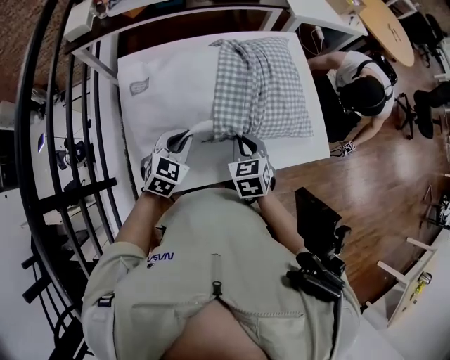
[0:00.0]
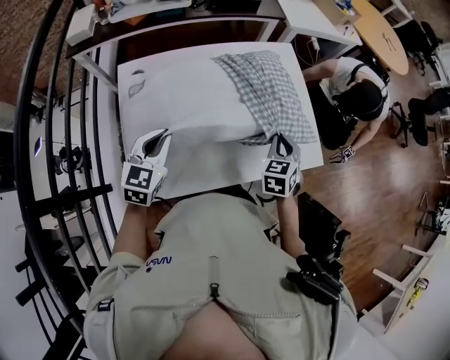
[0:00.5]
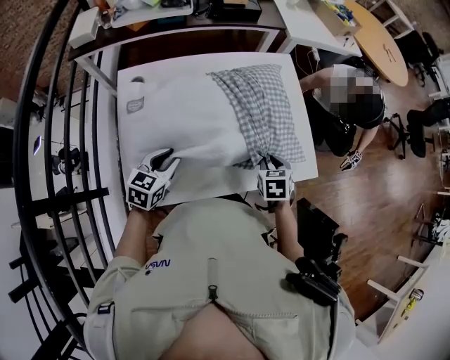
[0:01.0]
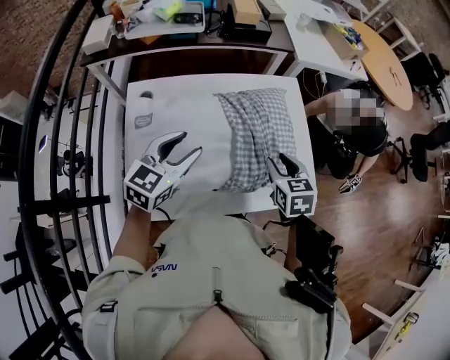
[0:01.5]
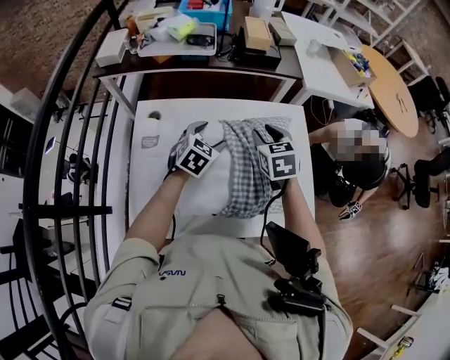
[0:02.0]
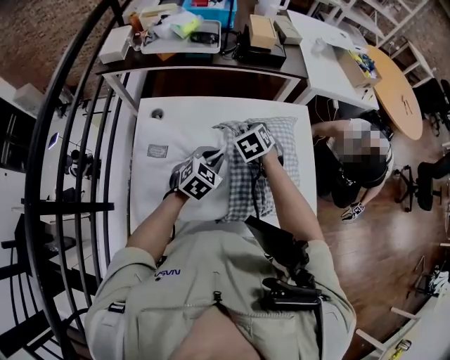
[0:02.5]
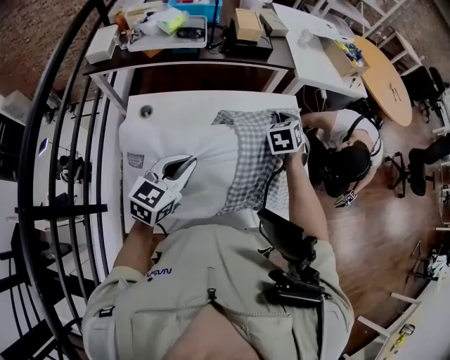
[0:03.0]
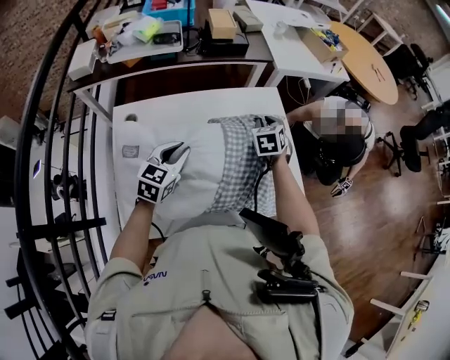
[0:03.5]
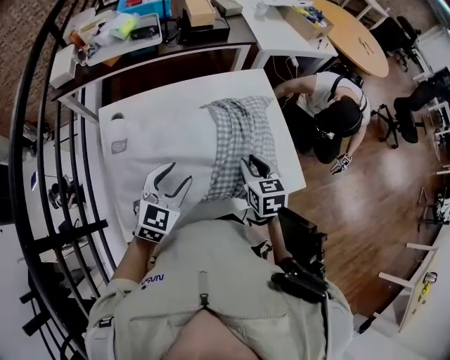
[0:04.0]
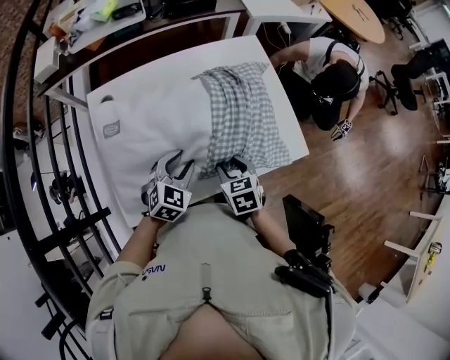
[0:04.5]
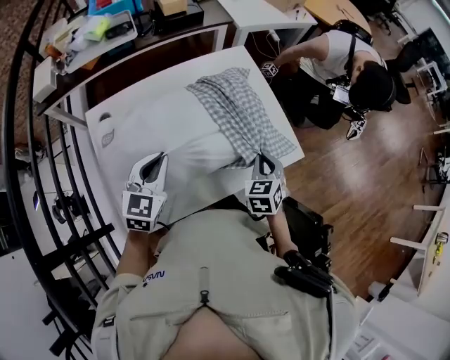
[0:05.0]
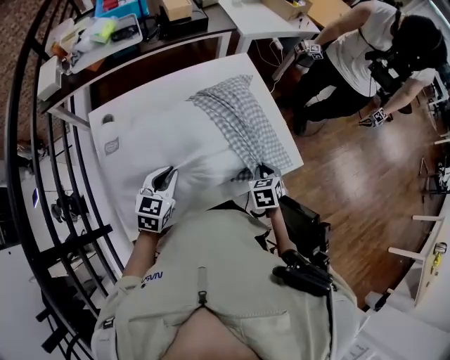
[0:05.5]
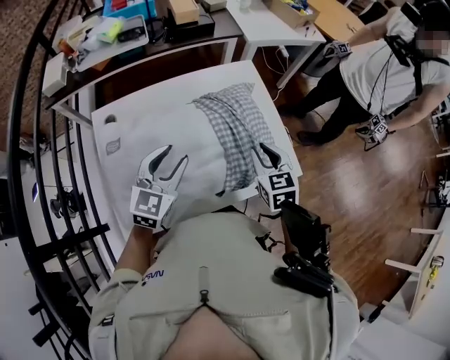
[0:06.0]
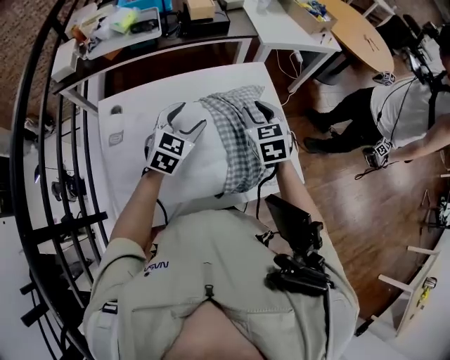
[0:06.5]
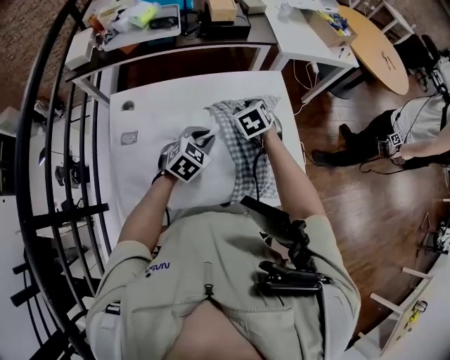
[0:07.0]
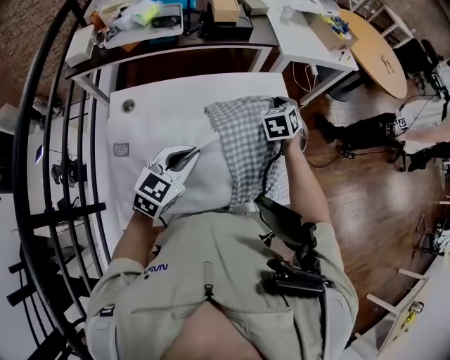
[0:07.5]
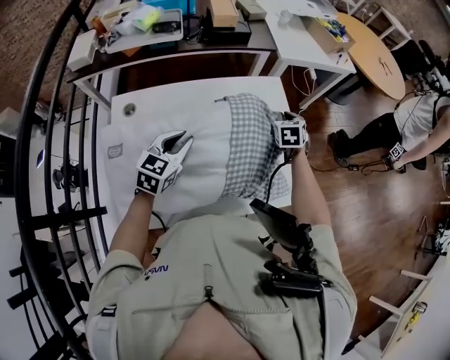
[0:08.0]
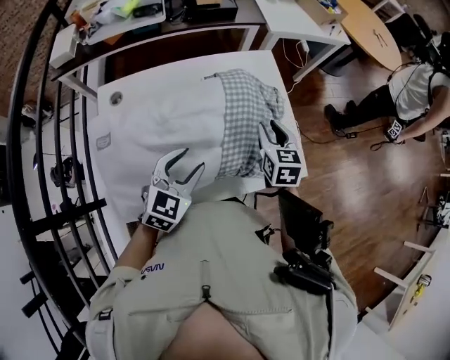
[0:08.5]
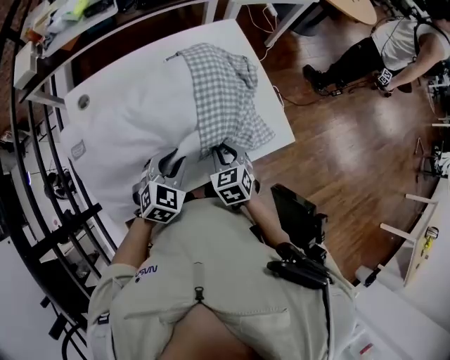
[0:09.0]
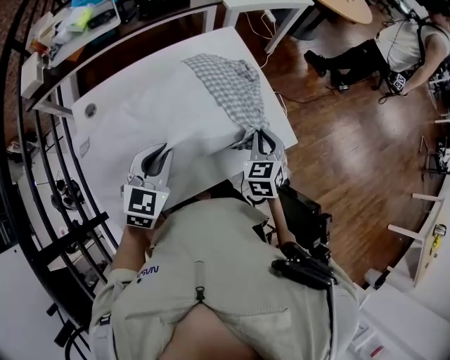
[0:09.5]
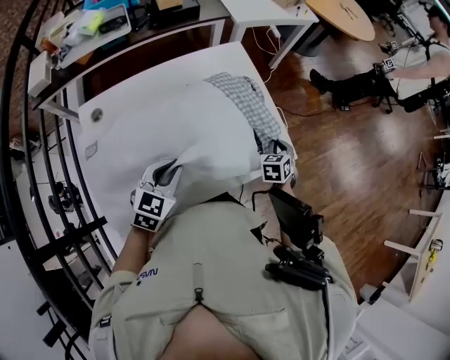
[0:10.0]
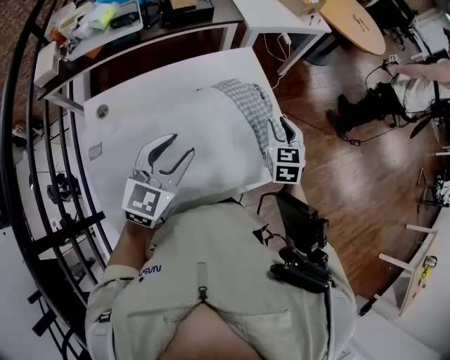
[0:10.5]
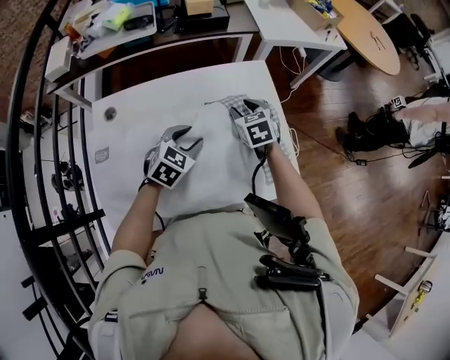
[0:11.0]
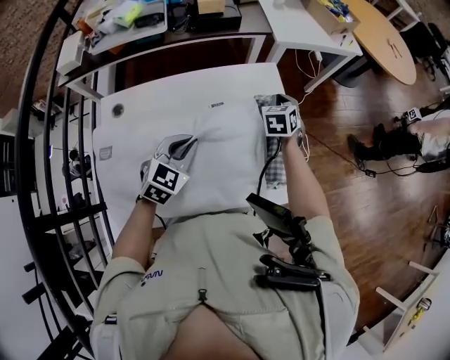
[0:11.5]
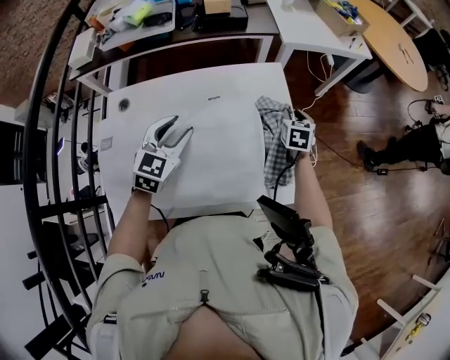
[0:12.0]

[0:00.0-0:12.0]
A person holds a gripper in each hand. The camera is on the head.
0:00.0 to 0:02.0: The left gripper shifts roughly 20 cm forward, and opens its fingers. Meanwhile the right gripper shifts some 25 cm forward and upward, and opens its fingers.
0:02.0 to 0:04.0: The left gripper goes forward and backward, roughly 20 cm each way, reversing 2 times, and closes, then opens again; the right gripper goes approximately 20 cm backward and to the right, and closes, then reopens.
0:04.0 to 0:06.0: The right gripper swings up and down, about 15 cm each way, with 3 reversals, and closes and opens again. The left gripper swings up and down, about 15 cm each way, with 3 reversals, and closes, then opens again.
0:06.0 to 0:08.0: The right gripper heads forward, covering about 20 cm; the left gripper goes forward and backward, approximately 10 cm each way, reversing 2 times.
0:08.0 to 0:10.0: The left gripper is displaced backward and to the right by approximately 15 cm, and opens, then closes again. The right gripper travels backward, to the right and downward by roughly 25 cm, and opens, then closes again.
0:10.0 to 0:12.0: The right gripper goes upward and returns, about 15 cm each way, changes its angle by roughly 20 degrees, and opens up. Meanwhile the left gripper moves up and down over roughly 15 cm, changing direction 2 times, and opens its fingers.

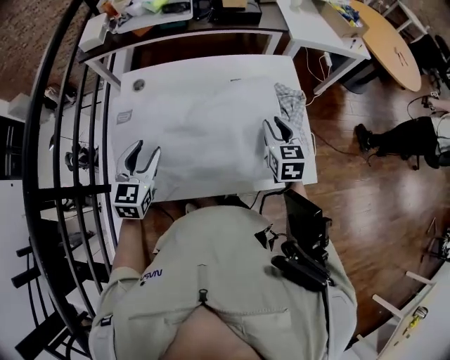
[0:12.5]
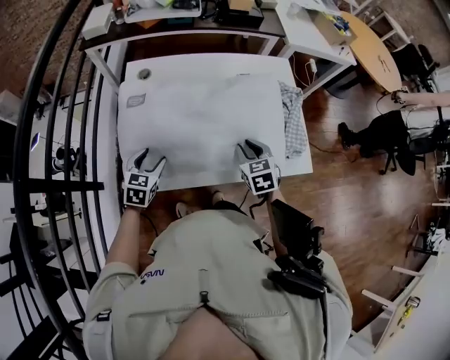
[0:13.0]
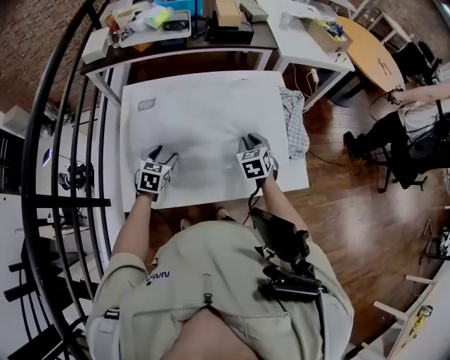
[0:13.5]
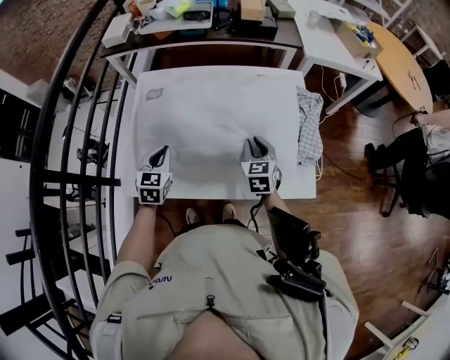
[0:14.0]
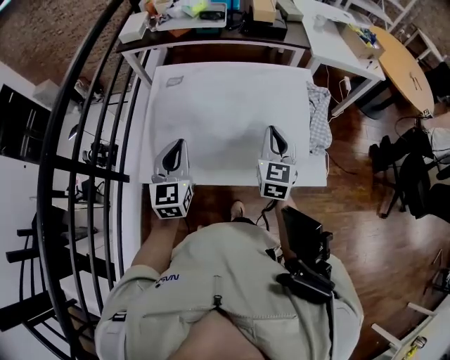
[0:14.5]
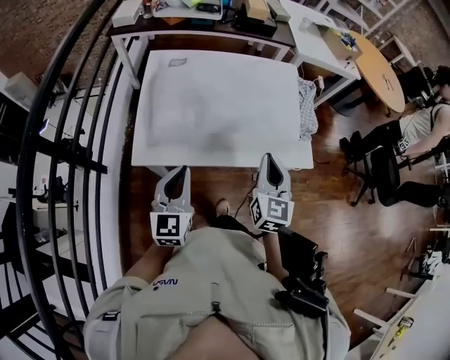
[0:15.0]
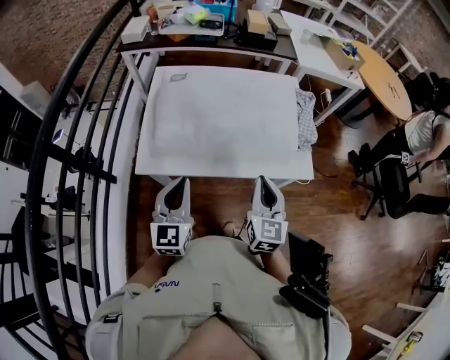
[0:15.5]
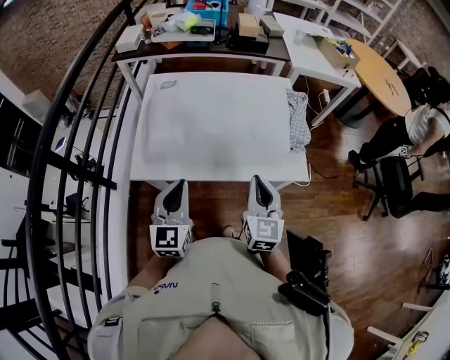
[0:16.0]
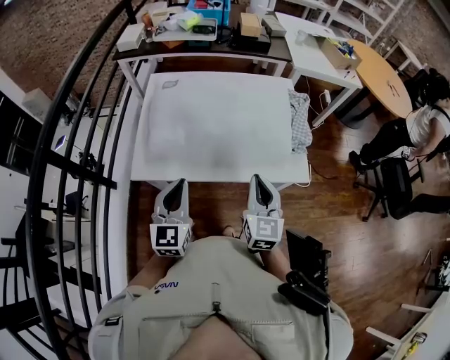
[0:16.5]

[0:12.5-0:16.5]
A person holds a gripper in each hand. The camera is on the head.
0:12.5 to 0:14.5: The left gripper is displaced backward by approximately 5 cm, moves approximately 15 cm downward and comes back, changes its angle by approximately 20 degrees, and closes up. The right gripper travels backward and to the left by approximately 10 cm, and closes.
0:14.5 to 0:16.5: Both grippers travel together backward, approximately 15 cm.

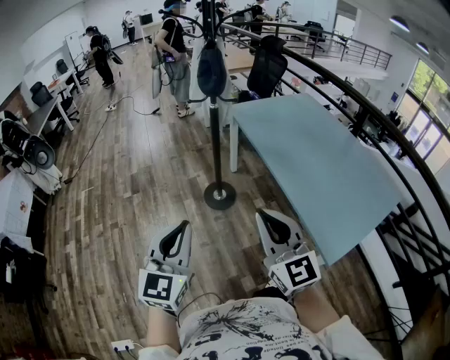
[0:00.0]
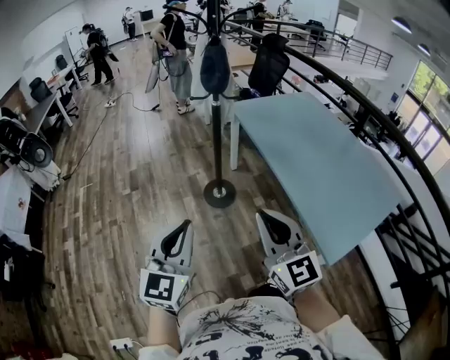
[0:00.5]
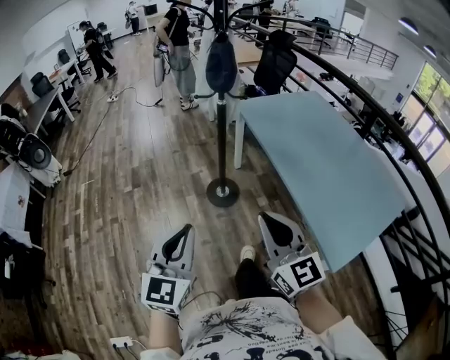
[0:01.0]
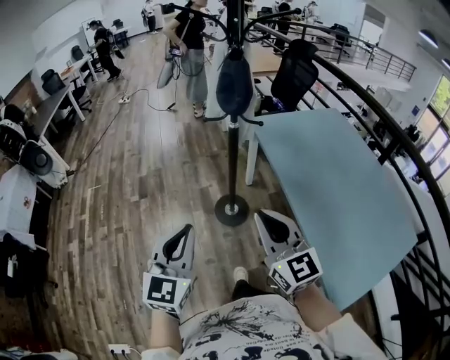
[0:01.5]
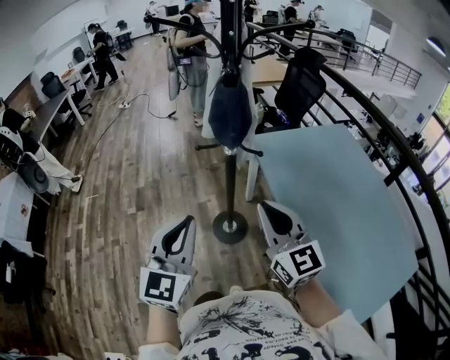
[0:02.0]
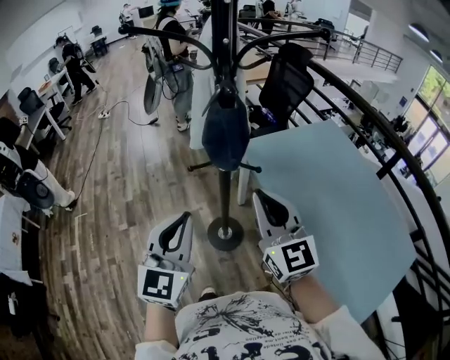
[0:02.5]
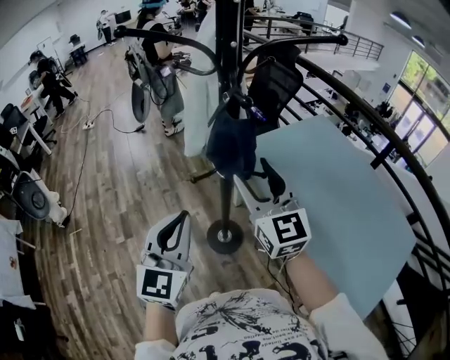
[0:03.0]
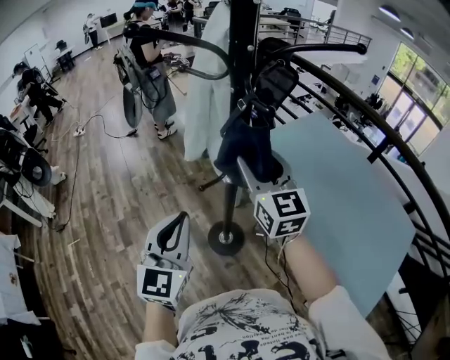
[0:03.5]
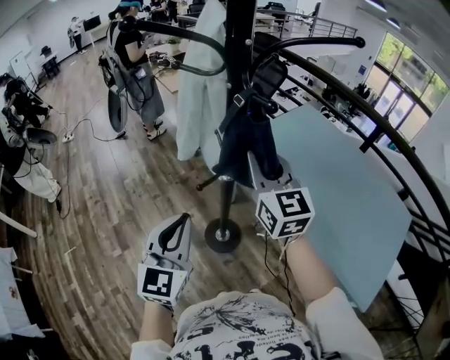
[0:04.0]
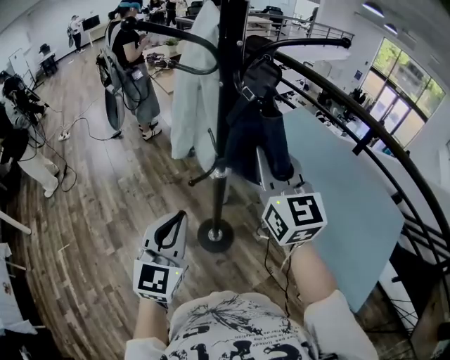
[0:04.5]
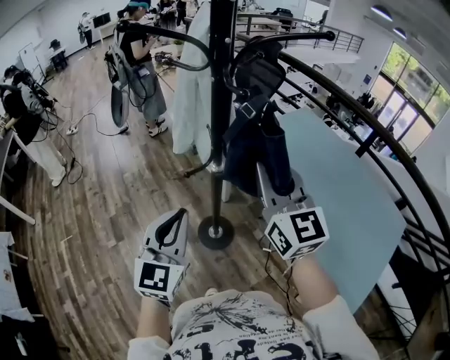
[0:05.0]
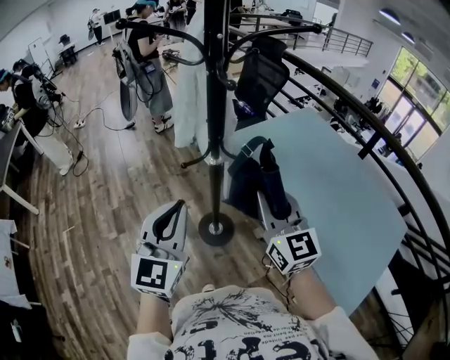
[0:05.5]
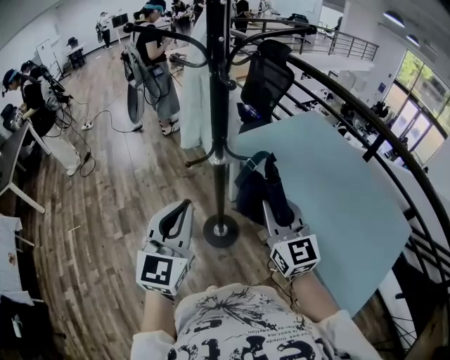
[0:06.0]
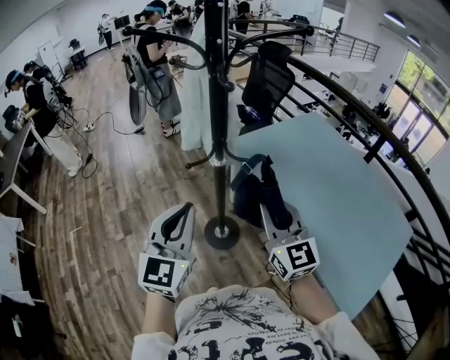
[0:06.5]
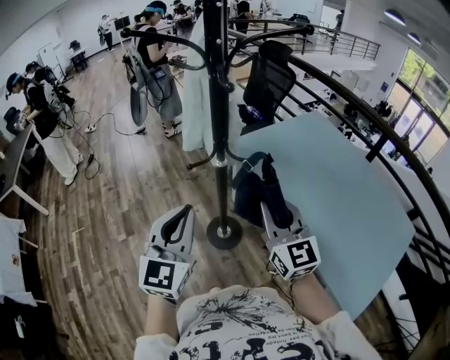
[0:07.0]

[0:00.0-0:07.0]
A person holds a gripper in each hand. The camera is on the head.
0:00.0 to 0:02.0: Both grippers travel together forward, roughly 35 cm.
0:02.0 to 0:03.5: The left gripper moves forward and to the left, about 20 cm; the right gripper shifts approximately 25 cm forward, swivels roughly 20 degrees, and opens its fingers.
0:03.5 to 0:05.0: The right gripper travels backward and to the right by roughly 10 cm, and closes its fingers; the left gripper changes place by some 5 cm.
0:05.0 to 0:07.0: The left gripper shifts by some 5 cm. The right gripper heads downward and backward, covering about 10 cm.

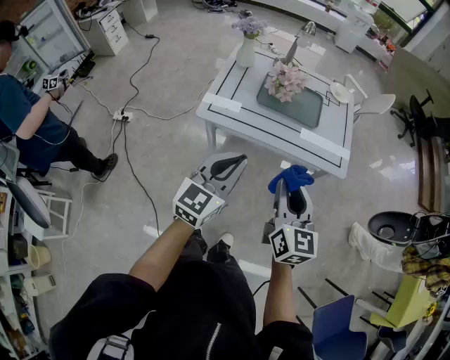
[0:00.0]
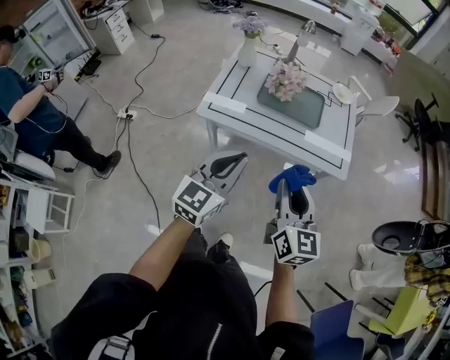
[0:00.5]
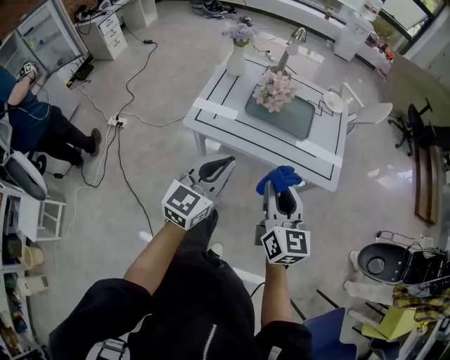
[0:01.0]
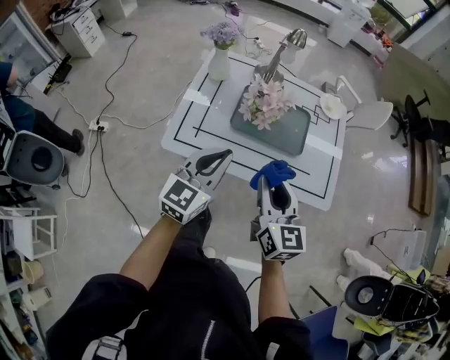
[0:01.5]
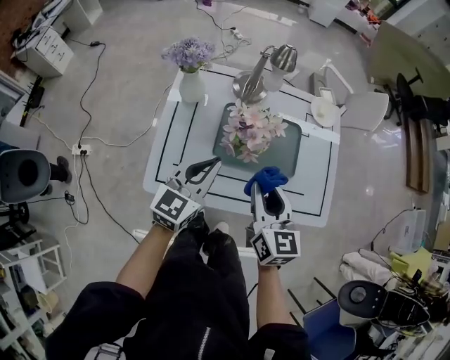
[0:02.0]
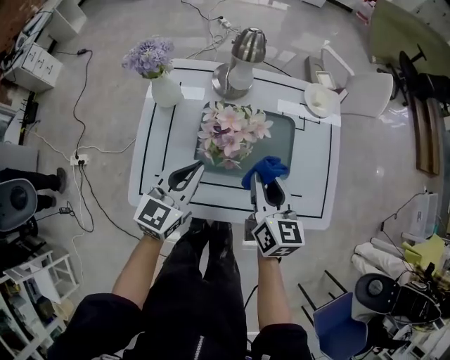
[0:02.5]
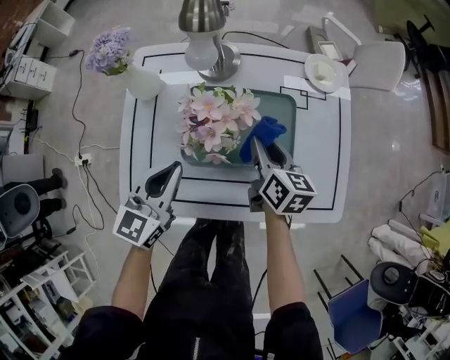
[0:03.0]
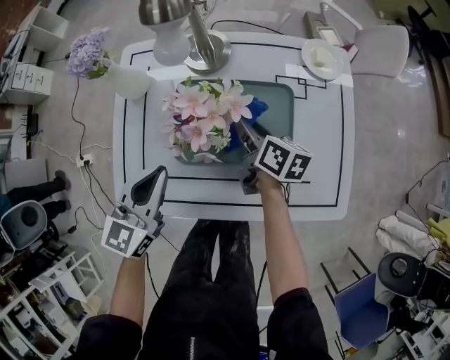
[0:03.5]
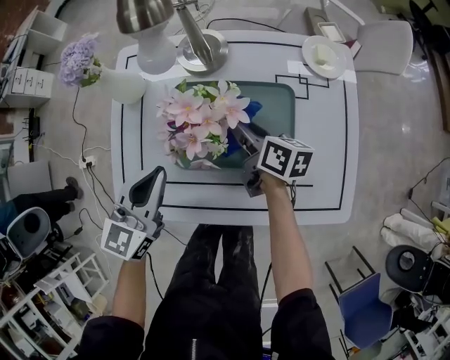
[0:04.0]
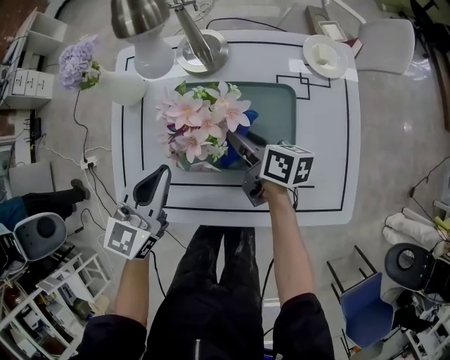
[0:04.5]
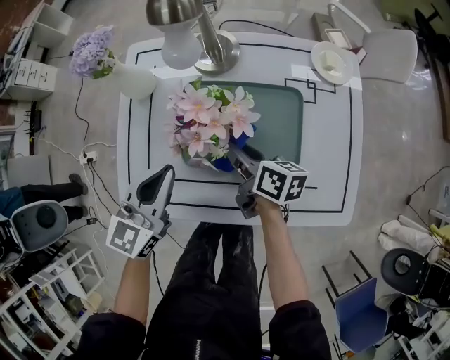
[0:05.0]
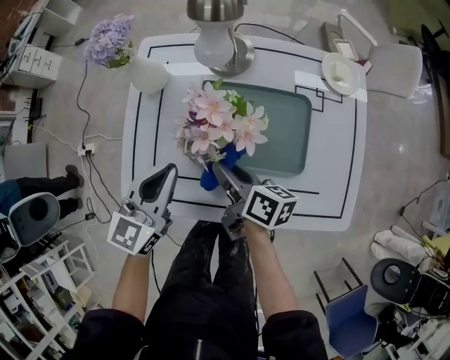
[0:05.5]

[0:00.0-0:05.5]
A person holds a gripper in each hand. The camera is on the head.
0:00.0 to 0:02.0: Both grippers travel together forward, approximately 35 cm.
0:02.0 to 0:03.5: The right gripper heads downward and forward, covering some 30 cm, and turns by some 40 degrees. Meanwhile the left gripper heads downward, covering roughly 10 cm.
0:03.5 to 0:05.5: The right gripper is displaced to the left and backward by some 15 cm.
